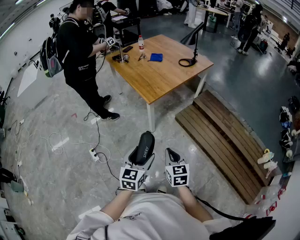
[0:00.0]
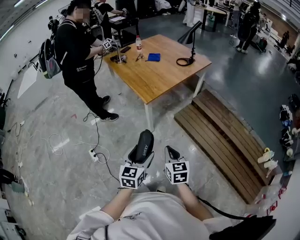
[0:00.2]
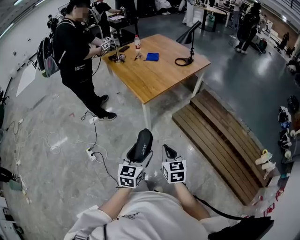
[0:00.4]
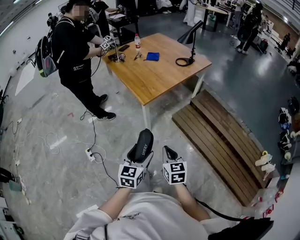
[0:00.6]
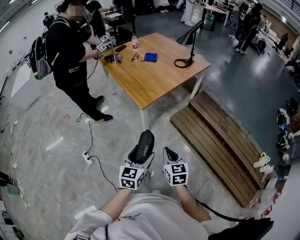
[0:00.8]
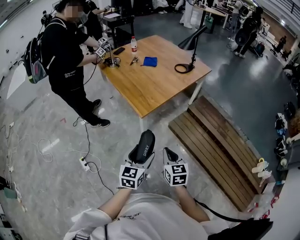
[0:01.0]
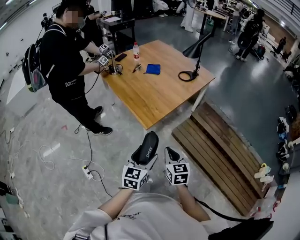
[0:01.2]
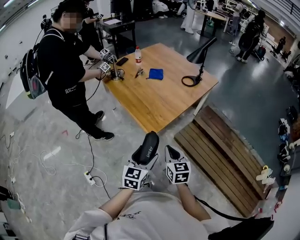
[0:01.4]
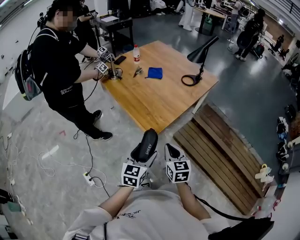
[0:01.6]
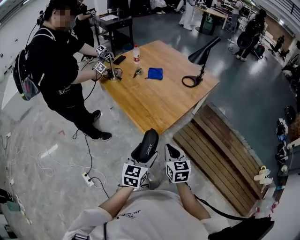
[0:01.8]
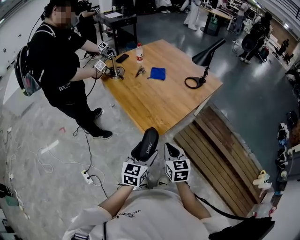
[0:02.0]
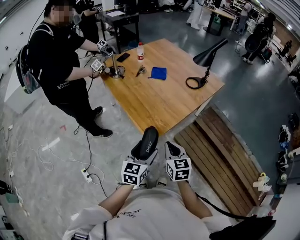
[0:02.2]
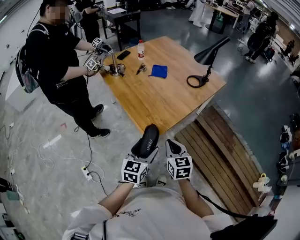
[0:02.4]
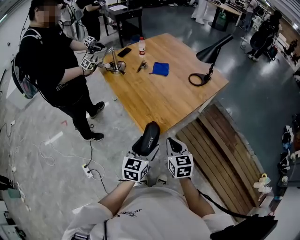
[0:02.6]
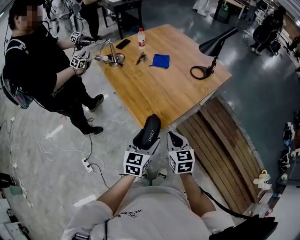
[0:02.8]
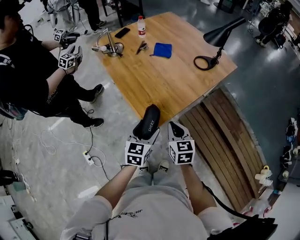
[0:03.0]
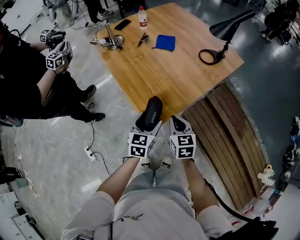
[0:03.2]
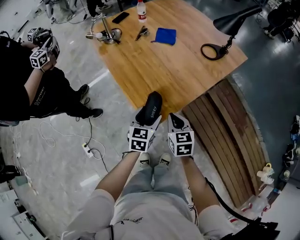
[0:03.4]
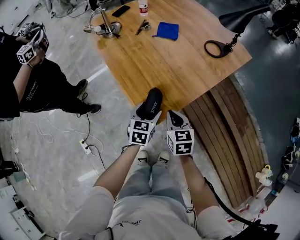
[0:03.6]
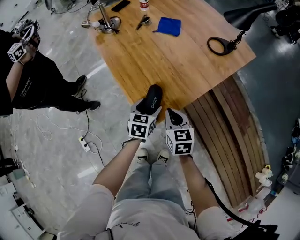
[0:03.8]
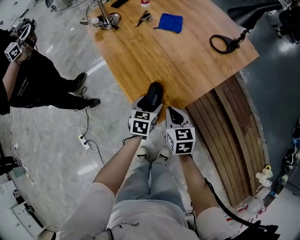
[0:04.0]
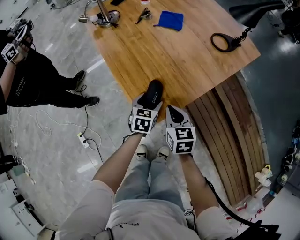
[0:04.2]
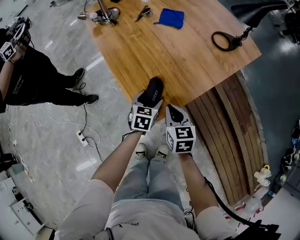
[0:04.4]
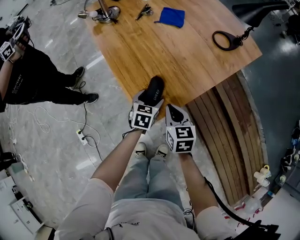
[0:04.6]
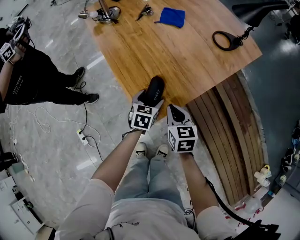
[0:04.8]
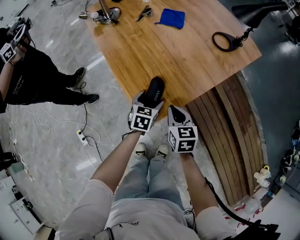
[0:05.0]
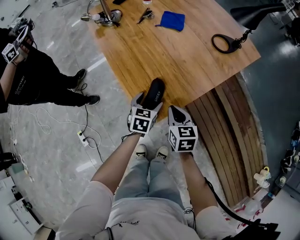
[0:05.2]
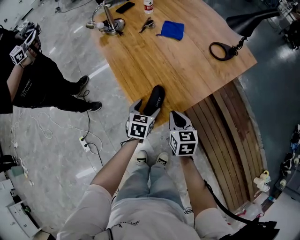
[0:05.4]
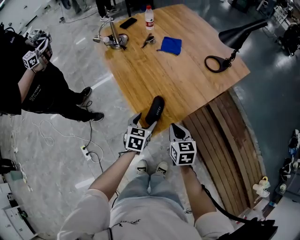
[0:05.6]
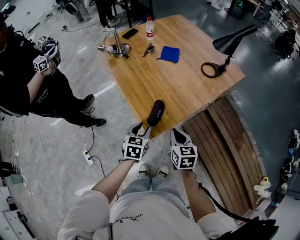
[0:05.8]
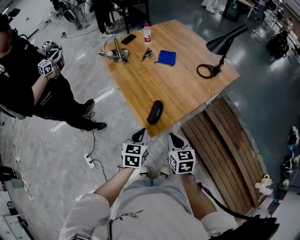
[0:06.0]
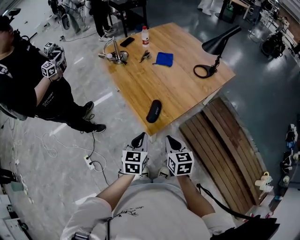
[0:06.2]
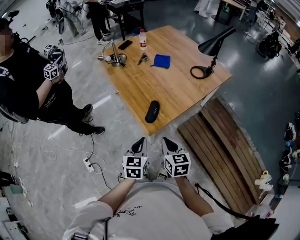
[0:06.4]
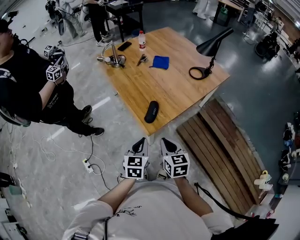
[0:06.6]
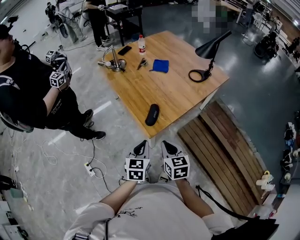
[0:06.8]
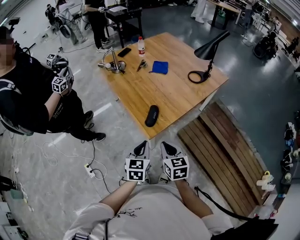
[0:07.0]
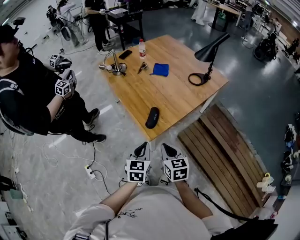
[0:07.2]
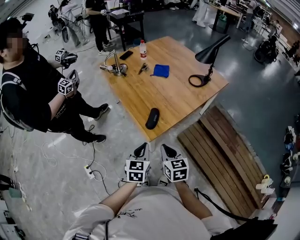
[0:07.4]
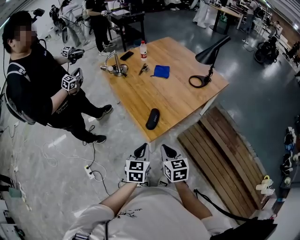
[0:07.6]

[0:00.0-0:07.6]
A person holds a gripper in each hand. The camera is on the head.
0:00.0 to 0:01.6: The two grippers go roughly 35 cm forward.
0:01.6 to 0:03.0: The two grippers go about 15 cm forward.
0:03.0 to 0:04.6: The right gripper goes some 15 cm downward and forward; the left gripper is displaced downward and forward by approximately 25 cm.
0:04.6 to 0:06.0: Both grippers travel together upward and backward, roughly 20 cm. The left gripper closes up.
0:06.0 to 0:07.6: The two grippers go about 10 cm backward.

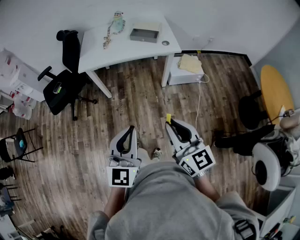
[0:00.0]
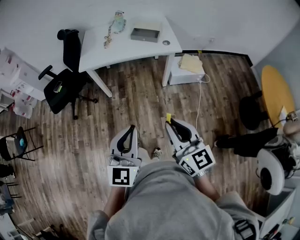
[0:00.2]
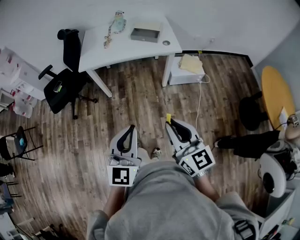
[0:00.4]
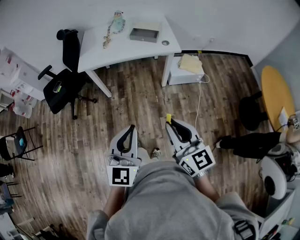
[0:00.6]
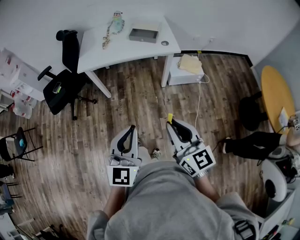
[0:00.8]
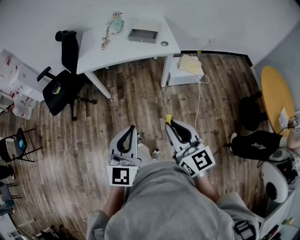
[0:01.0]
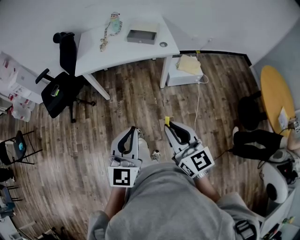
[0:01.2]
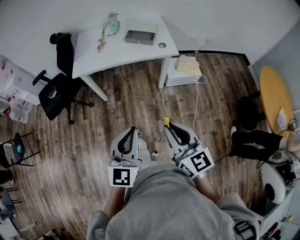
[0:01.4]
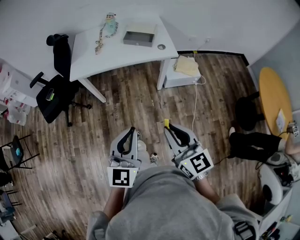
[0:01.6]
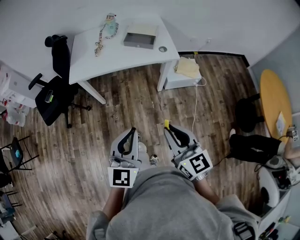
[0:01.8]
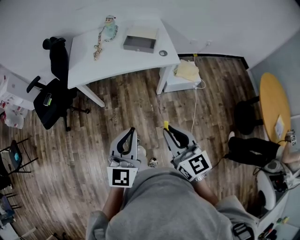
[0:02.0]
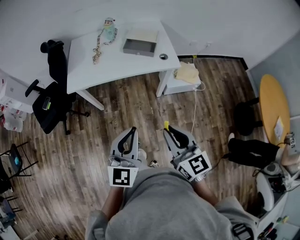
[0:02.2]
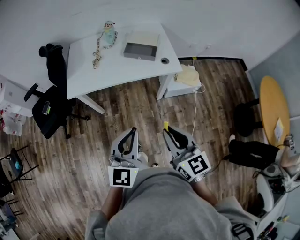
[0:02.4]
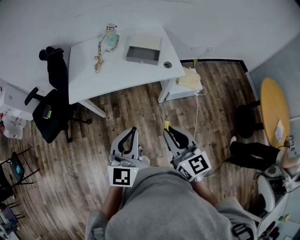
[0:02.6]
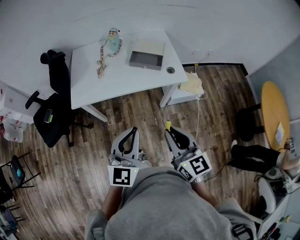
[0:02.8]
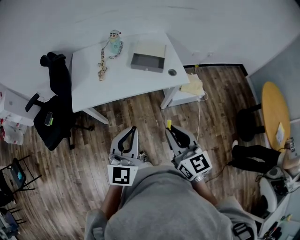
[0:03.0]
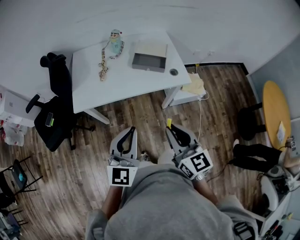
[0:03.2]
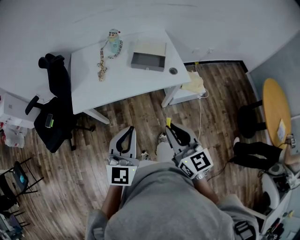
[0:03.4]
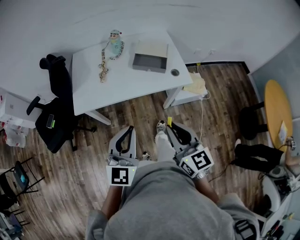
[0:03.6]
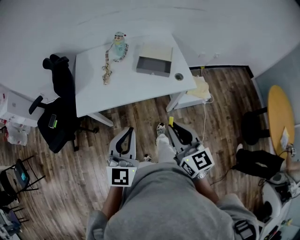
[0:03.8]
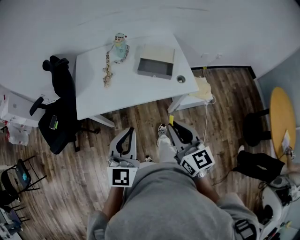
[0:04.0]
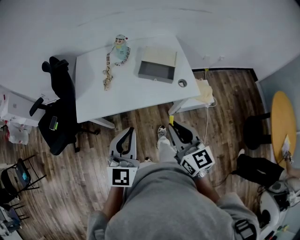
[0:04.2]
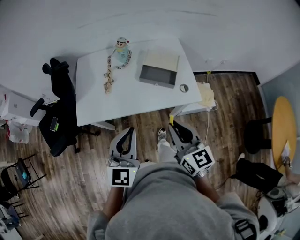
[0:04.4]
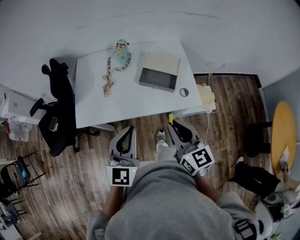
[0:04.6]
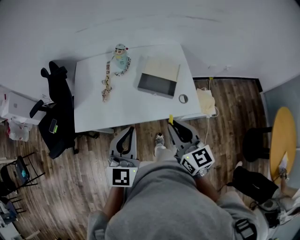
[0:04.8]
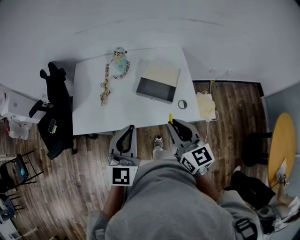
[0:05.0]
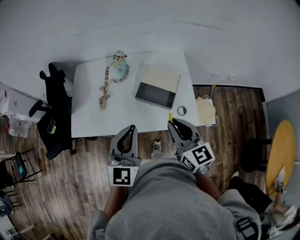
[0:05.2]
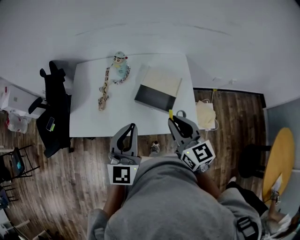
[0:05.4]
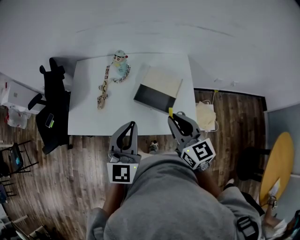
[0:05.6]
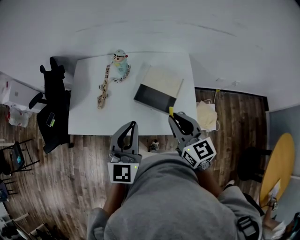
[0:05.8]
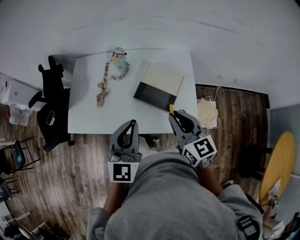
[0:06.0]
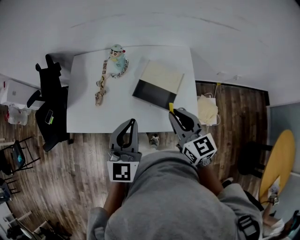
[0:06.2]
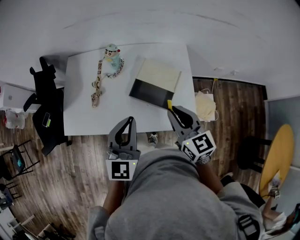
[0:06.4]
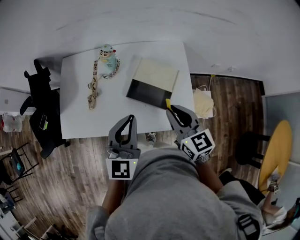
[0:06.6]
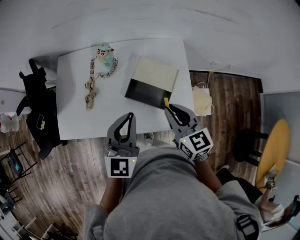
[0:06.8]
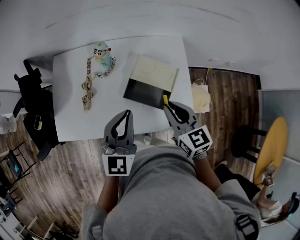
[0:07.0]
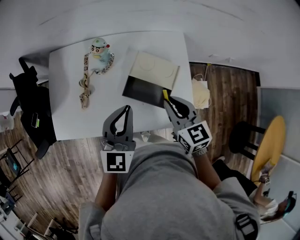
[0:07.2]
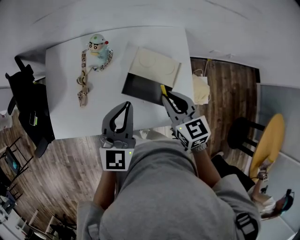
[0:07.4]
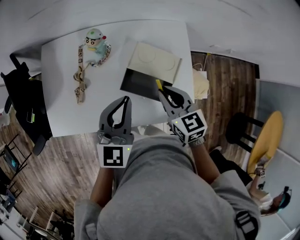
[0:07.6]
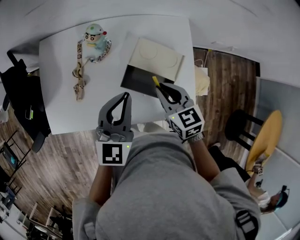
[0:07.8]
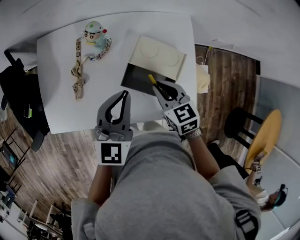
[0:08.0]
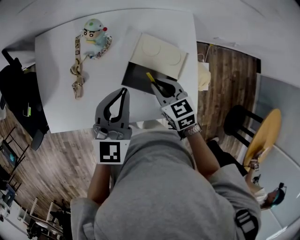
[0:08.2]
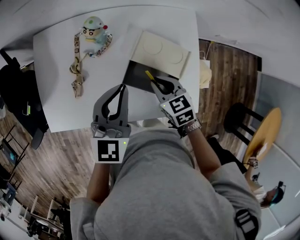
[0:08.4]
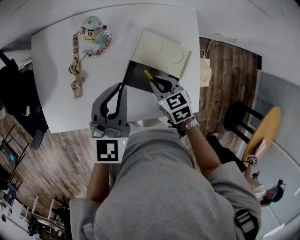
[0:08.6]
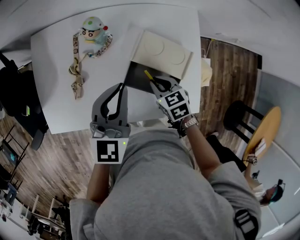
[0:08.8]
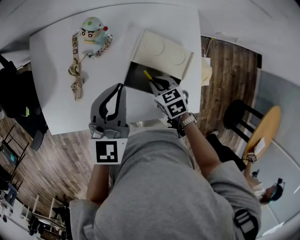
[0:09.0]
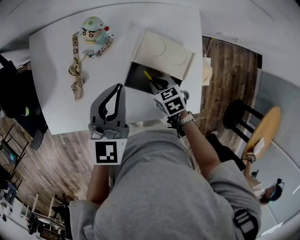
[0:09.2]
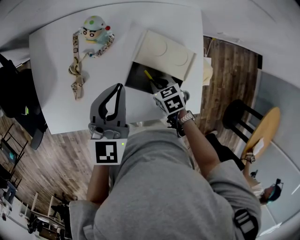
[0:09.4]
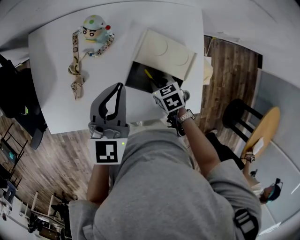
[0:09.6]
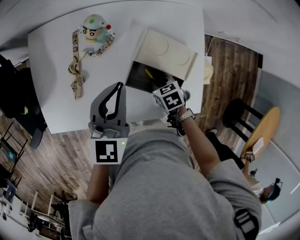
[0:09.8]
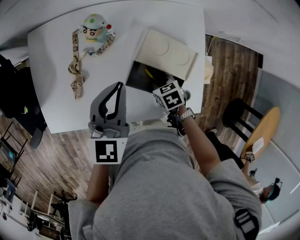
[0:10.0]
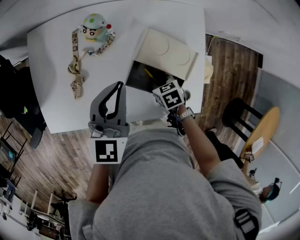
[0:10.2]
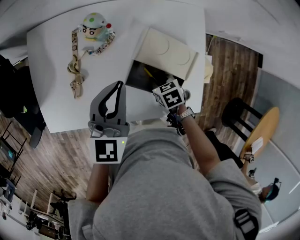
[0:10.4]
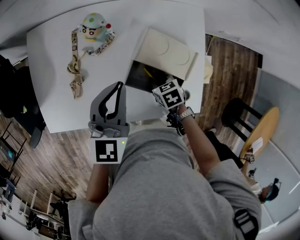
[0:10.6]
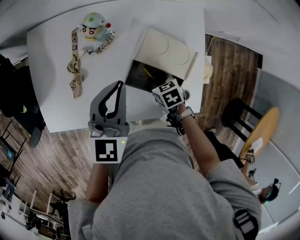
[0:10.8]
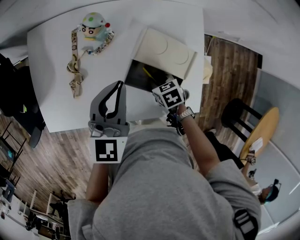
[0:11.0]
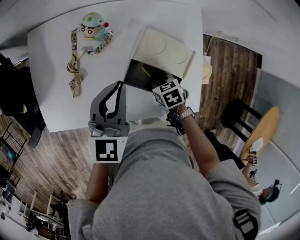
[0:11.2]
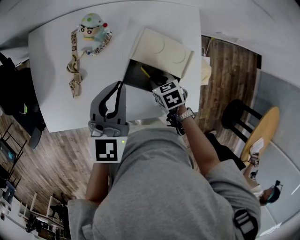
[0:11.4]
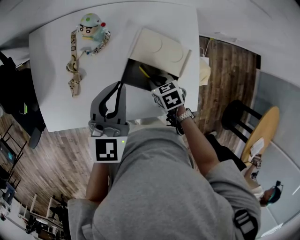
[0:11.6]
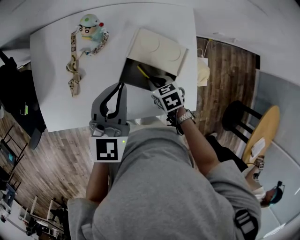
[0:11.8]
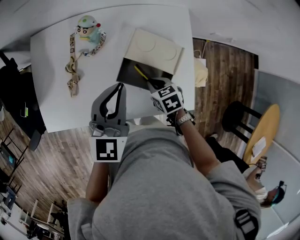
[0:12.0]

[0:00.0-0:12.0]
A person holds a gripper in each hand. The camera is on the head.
0:00.0 to 0:01.6: The two grippers go about 10 cm forward.
0:01.6 to 0:03.0: The two grippers go about 25 cm forward.
0:03.0 to 0:04.4: The grippers both shift forward by roughly 15 cm.
0:04.4 to 0:06.0: The grippers both shift forward and to the right by roughly 20 cm.
0:06.0 to 0:07.6: Both grippers move forward and downward, some 15 cm.
0:07.6 to 0:09.0: The right gripper shifts approximately 15 cm downward, and turns by some 30 degrees. The left gripper moves forward, roughly 5 cm.
0:09.0 to 0:10.4: The right gripper is displaced downward by some 5 cm.
0:10.4 to 0:12.0: The left gripper moves backward, some 5 cm, while the right gripper goes about 5 cm upward.

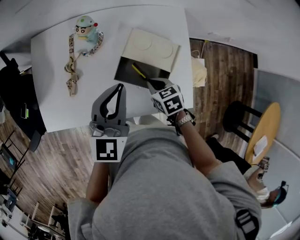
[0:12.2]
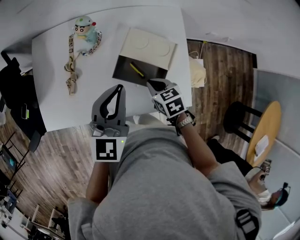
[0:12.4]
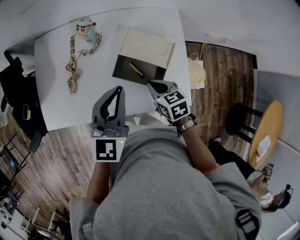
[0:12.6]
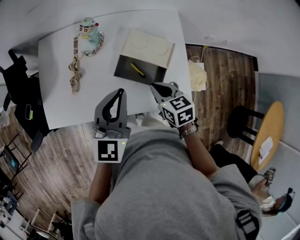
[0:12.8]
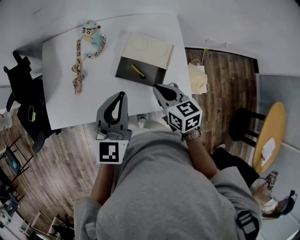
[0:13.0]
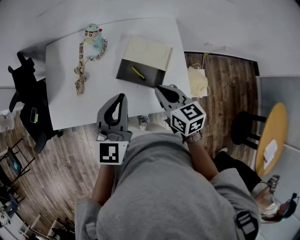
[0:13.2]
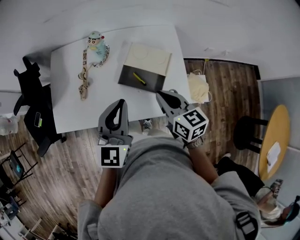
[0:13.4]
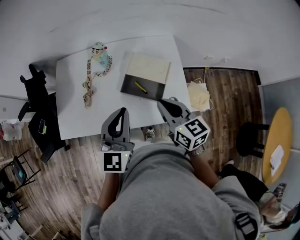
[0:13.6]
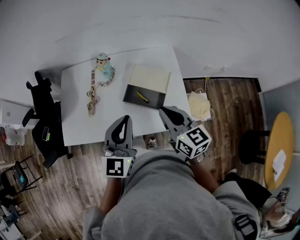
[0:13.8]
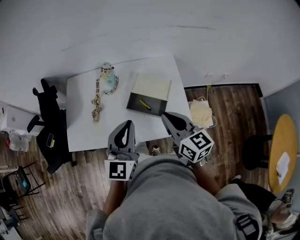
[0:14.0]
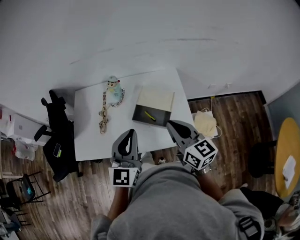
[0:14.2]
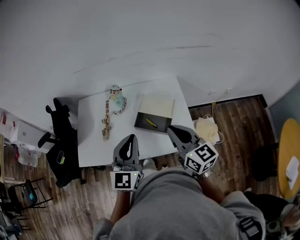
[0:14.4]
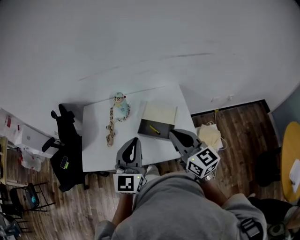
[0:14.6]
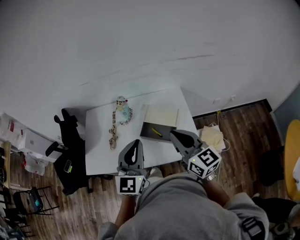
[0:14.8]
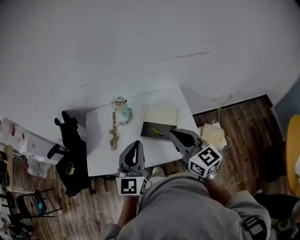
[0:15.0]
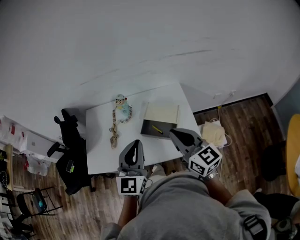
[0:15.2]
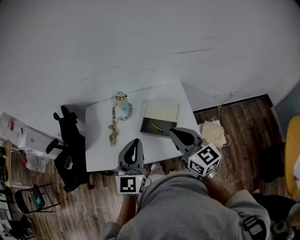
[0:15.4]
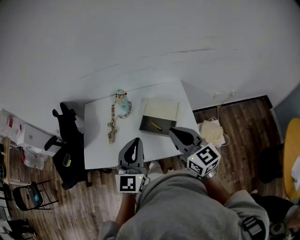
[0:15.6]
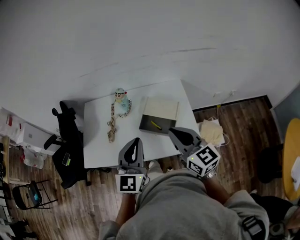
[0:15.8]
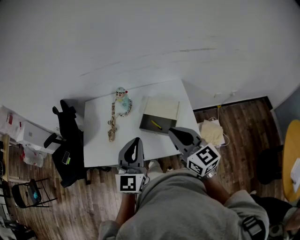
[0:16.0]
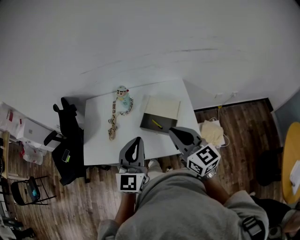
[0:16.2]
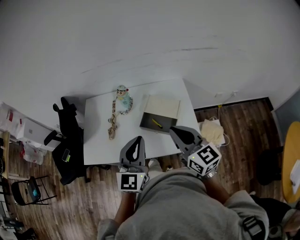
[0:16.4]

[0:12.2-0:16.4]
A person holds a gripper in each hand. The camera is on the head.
0:12.2 to 0:13.6: The right gripper is displaced upward by some 20 cm, and angles its fingers upward, by roughly 40 degrees. Meanwhile the left gripper is displaced backward and upward by approximately 15 cm.
0:13.6 to 0:15.0: The right gripper shifts some 15 cm upward, and rotates about 20 degrees. The left gripper moves upward, approximately 10 cm.
0:15.0 to 0:16.4: The grippers move only a little.
